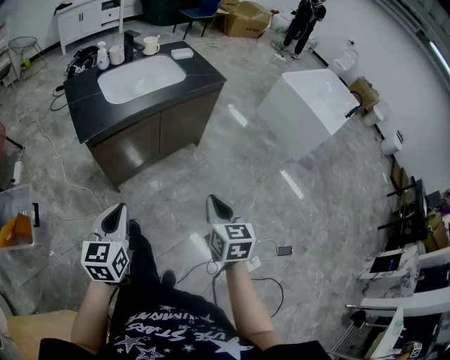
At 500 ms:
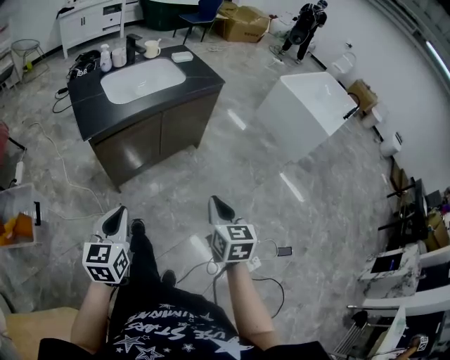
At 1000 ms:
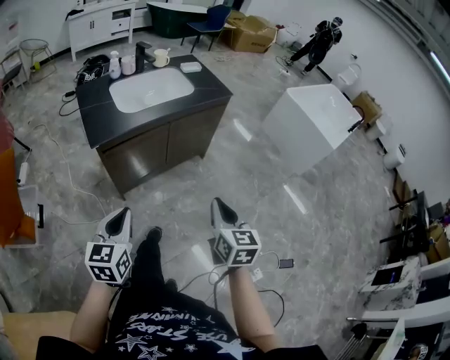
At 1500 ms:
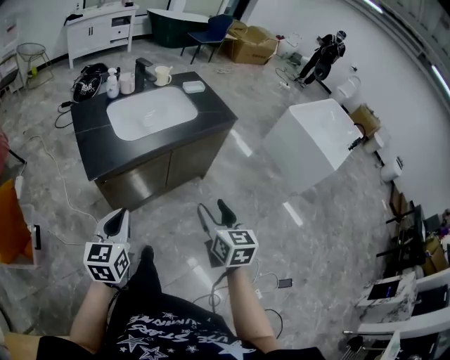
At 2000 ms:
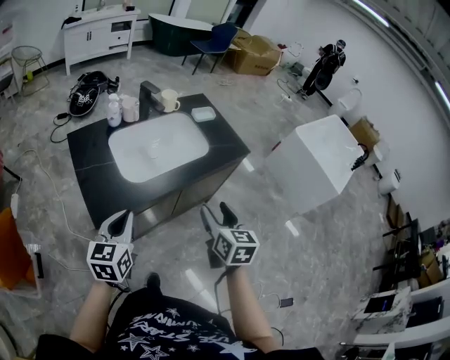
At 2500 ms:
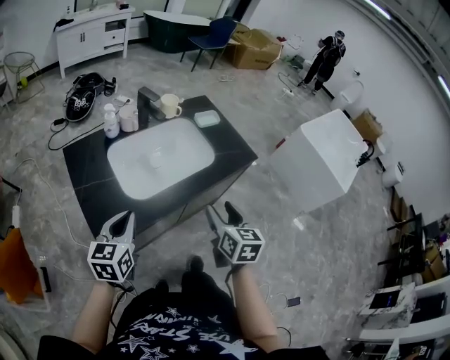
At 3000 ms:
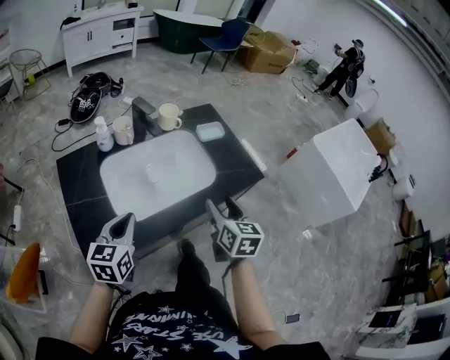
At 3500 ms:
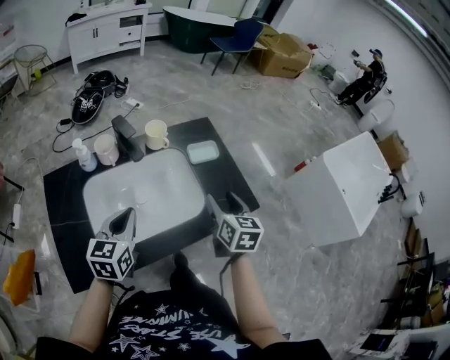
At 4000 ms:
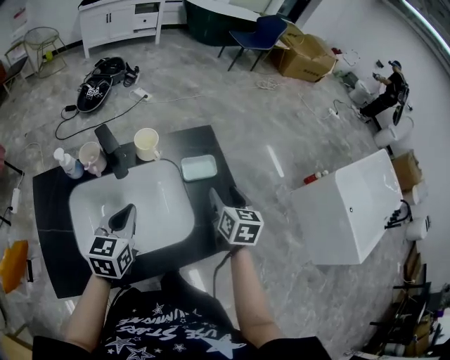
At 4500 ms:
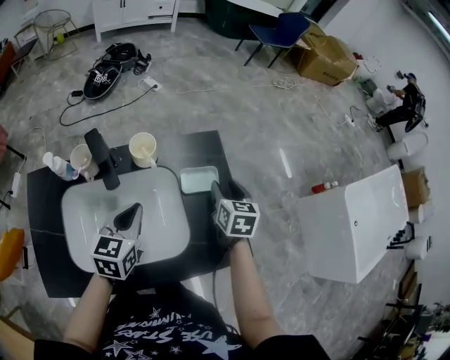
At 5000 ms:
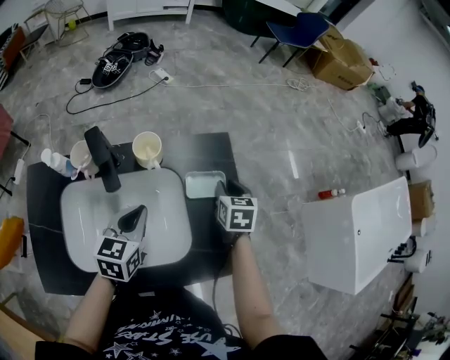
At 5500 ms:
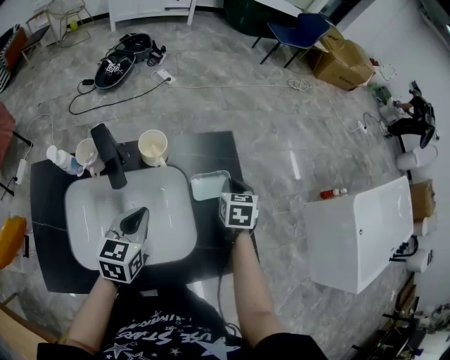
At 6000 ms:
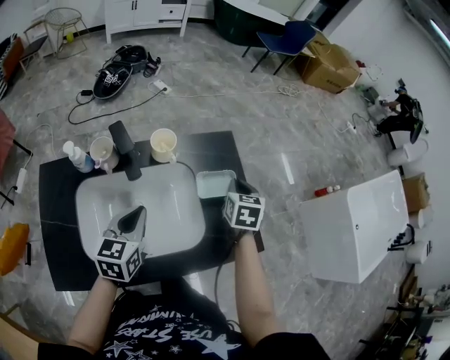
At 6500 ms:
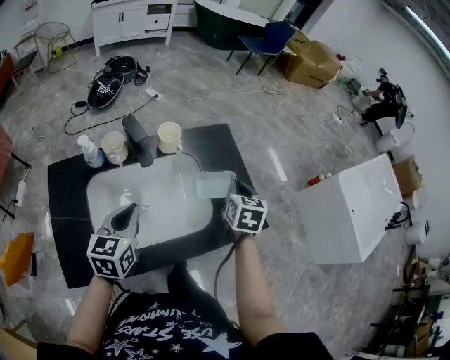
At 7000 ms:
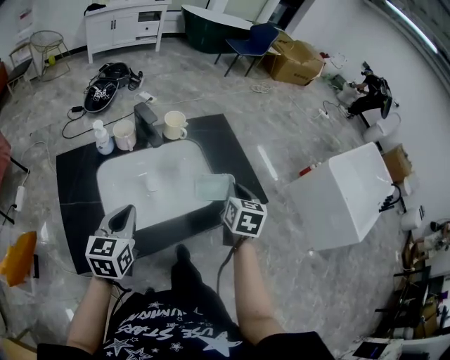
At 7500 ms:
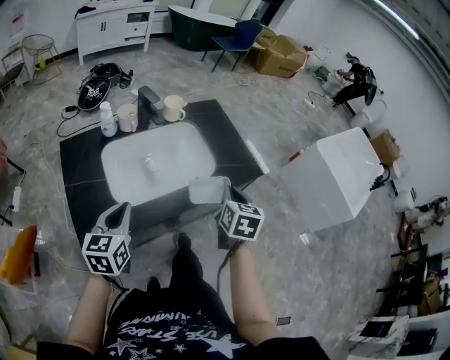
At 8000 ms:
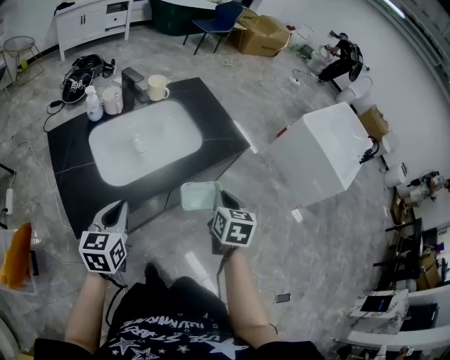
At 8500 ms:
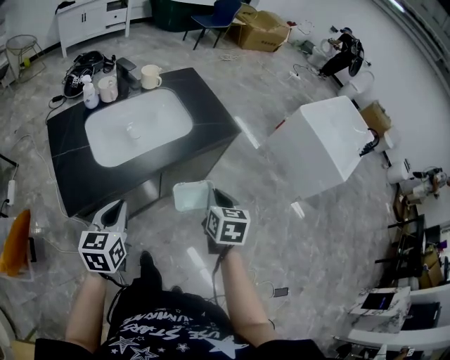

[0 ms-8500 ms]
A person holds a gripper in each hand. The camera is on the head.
0 ms to 2000 ms: Both grippers travel together forward, roughly 30 cm. The right gripper opens.
2000 ms to 4000 ms: The two grippers go approximately 40 cm forward.
4000 ms to 6500 ms: The right gripper reaches approximately 10 cm forward, then returns, and closes up, while the left gripper goes some 5 cm to the left.
6500 ms to 8500 ms: The grippers both shift backward by about 35 cm.

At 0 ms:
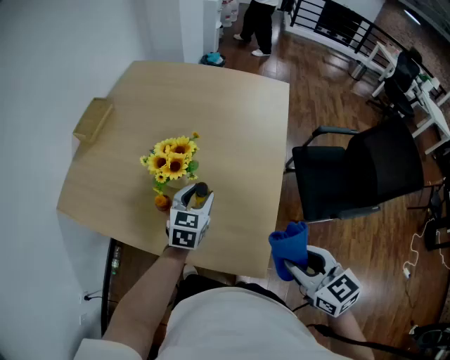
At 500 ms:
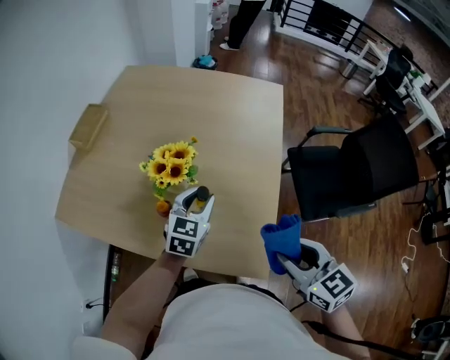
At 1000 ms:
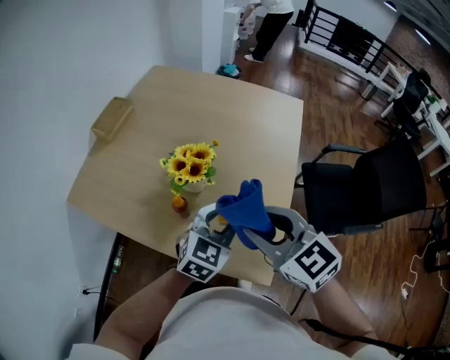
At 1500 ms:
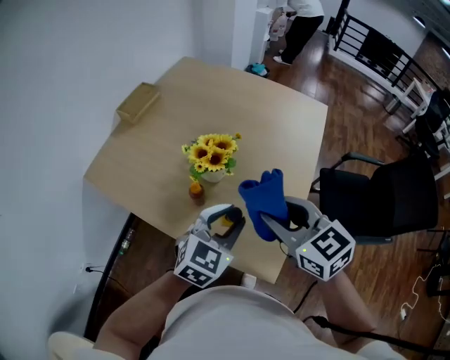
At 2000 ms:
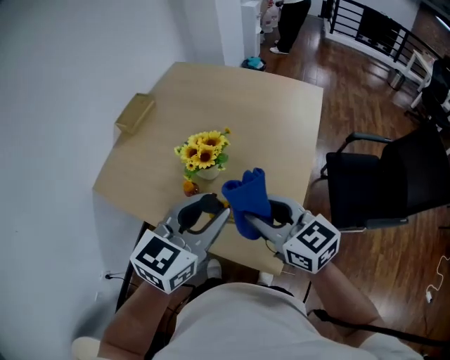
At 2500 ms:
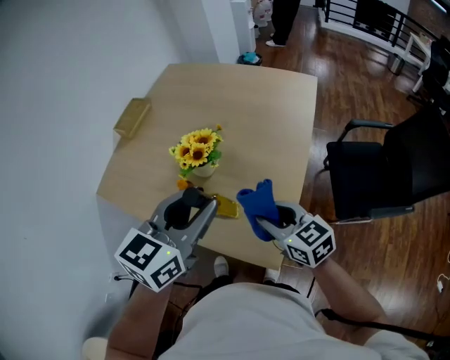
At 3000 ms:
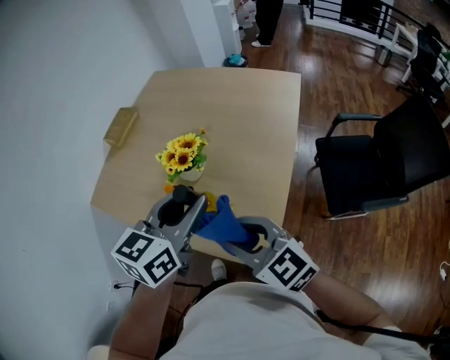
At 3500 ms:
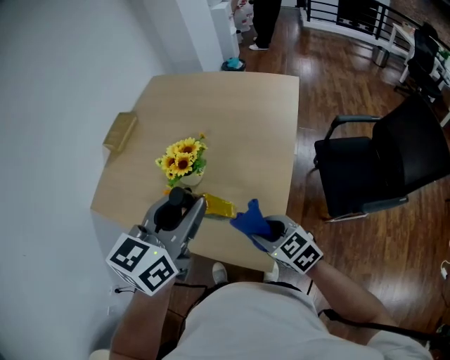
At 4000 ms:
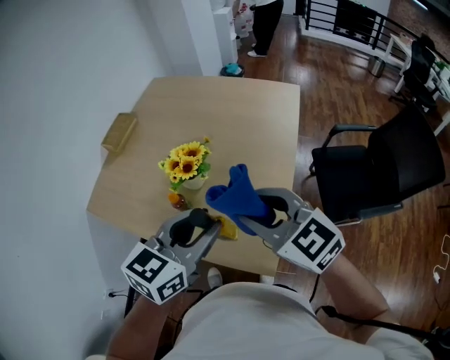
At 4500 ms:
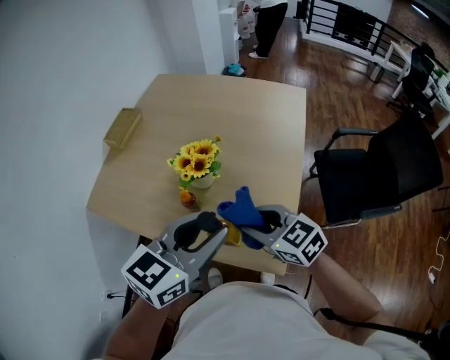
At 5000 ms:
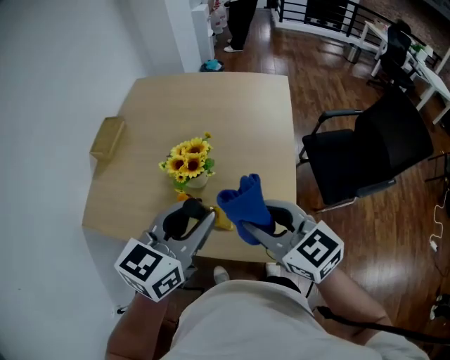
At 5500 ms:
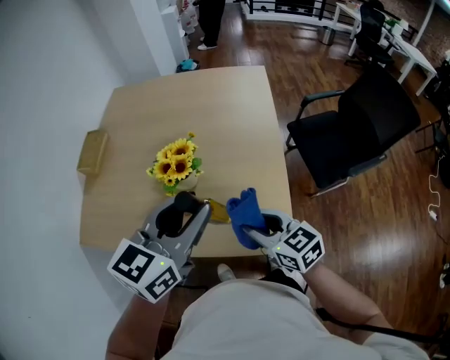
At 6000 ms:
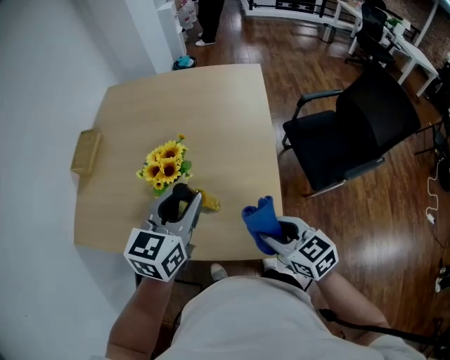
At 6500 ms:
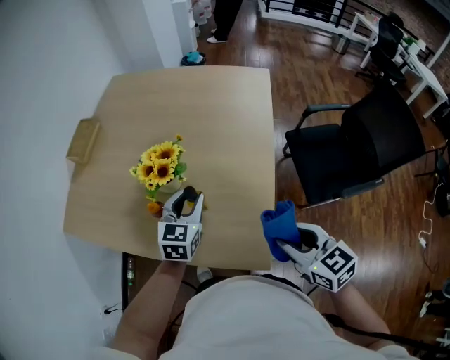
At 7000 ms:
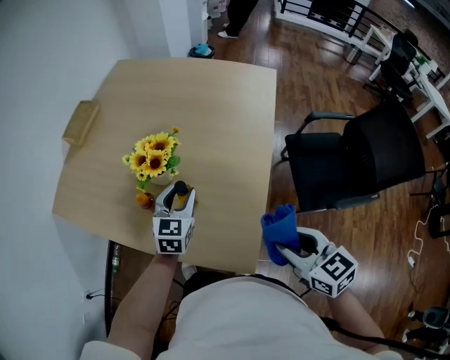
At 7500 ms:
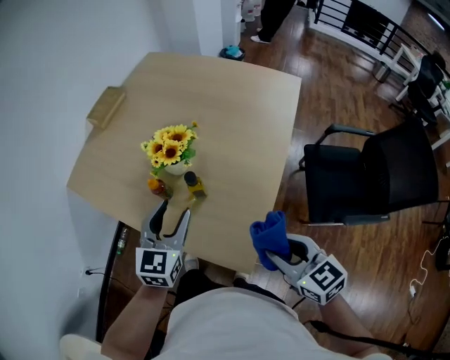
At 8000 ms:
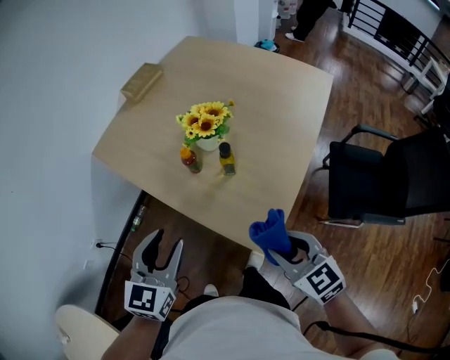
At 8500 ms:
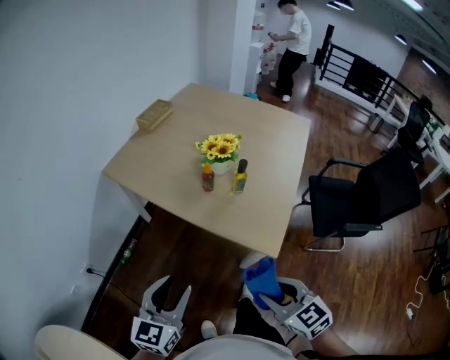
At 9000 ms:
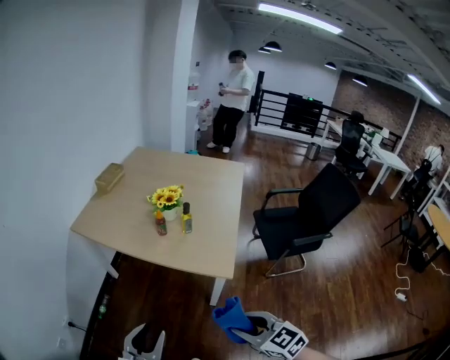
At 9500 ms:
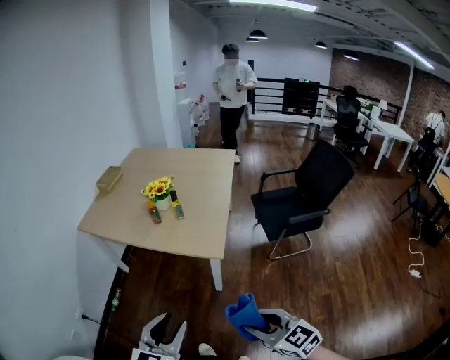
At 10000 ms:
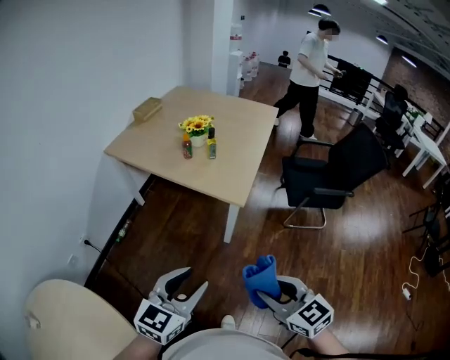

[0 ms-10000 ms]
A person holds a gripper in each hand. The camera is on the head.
0 ms to 2000 ms: The right gripper heads to the left, forward and upward, covering roughly 15 cm, and changes its angle by roughly 30 degrees; the left gripper shifts roughly 25 cm upward and backward.
2000 ms to 4000 ms: The right gripper goes up and down, roughly 20 cm each way, reversing 3 times.
4000 ms to 6000 ms: The left gripper travels forward by about 10 cm, while the right gripper swings up and down, roughly 15 cm each way, with 2 reversals, and changes its angle by approximately 40 degrees.
6000 ms to 8000 ms: The left gripper travels downward and back again, approximately 15 cm each way, and swivels some 30 degrees. The right gripper ends up approximately 10 cm from where it was, and swivels roughly 30 degrees.
8000 ms to 10000 ms: The two grippers travel together, backward, roughly 50 cm. The left gripper rotates roughly 30 degrees.

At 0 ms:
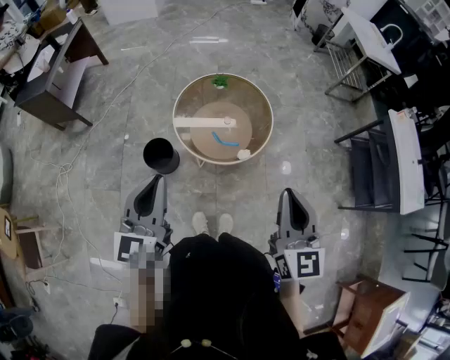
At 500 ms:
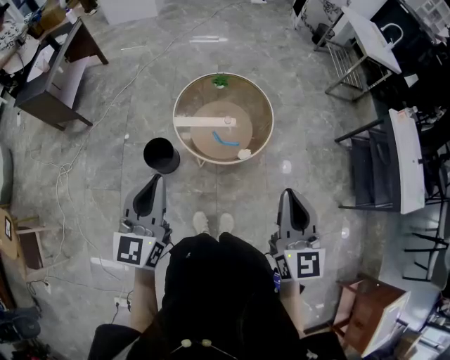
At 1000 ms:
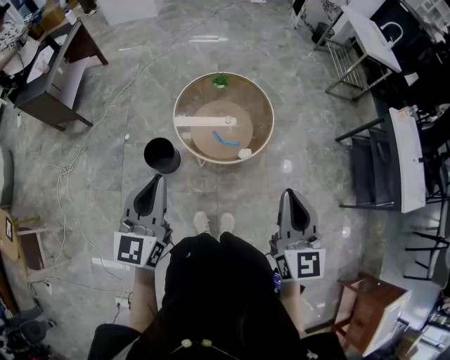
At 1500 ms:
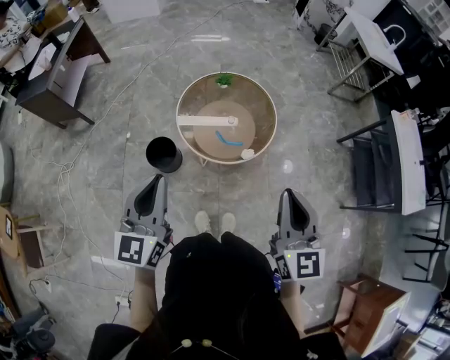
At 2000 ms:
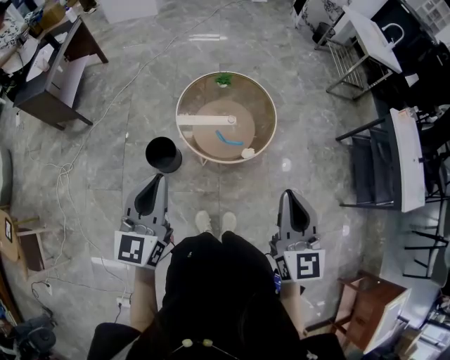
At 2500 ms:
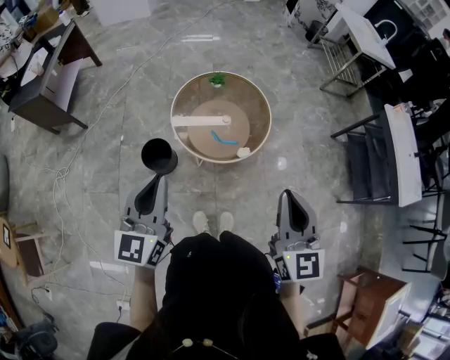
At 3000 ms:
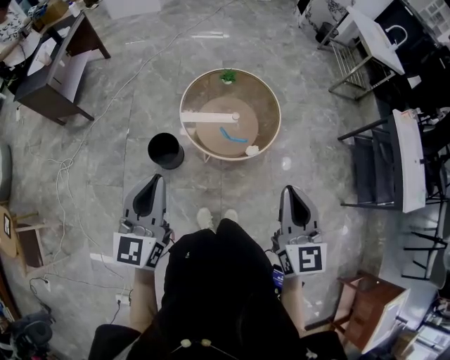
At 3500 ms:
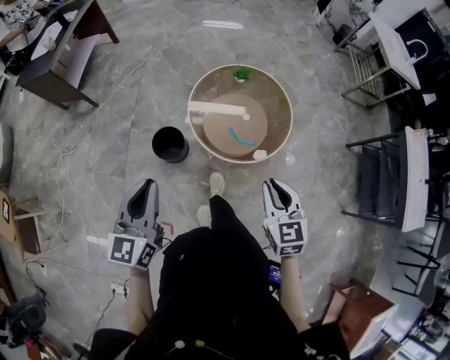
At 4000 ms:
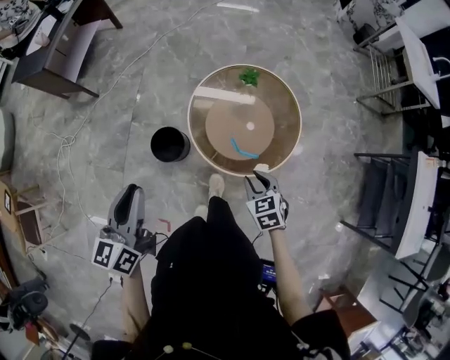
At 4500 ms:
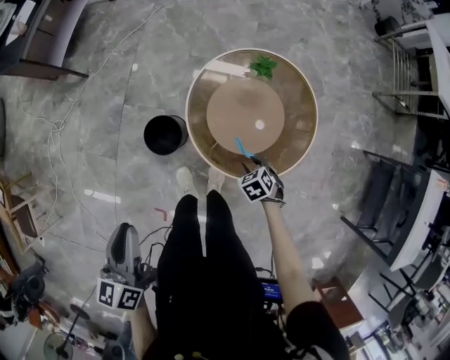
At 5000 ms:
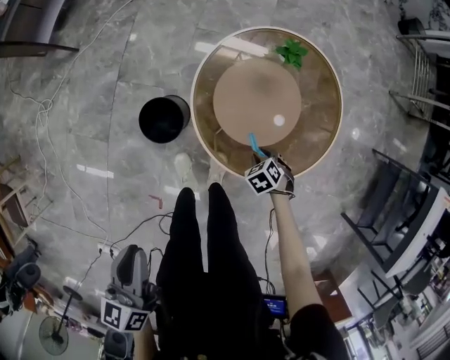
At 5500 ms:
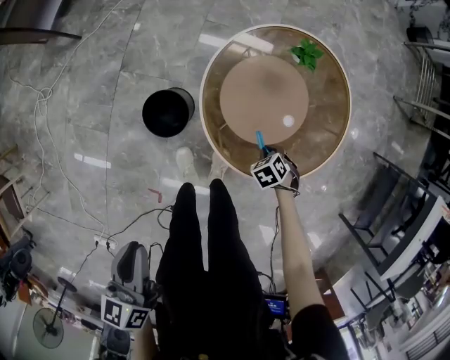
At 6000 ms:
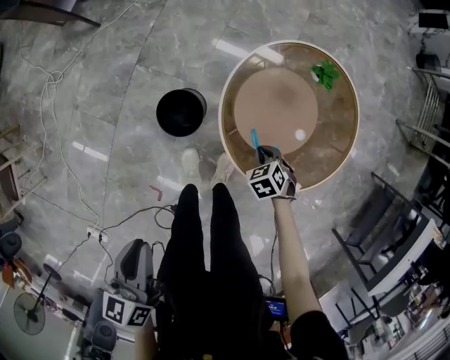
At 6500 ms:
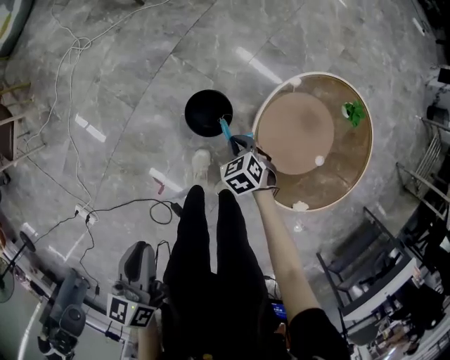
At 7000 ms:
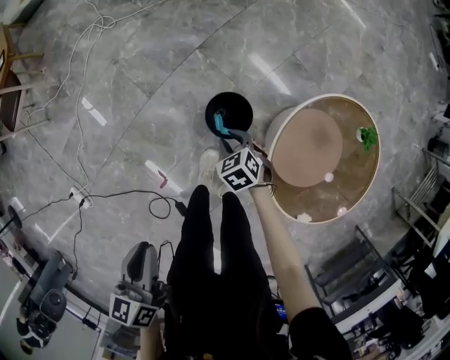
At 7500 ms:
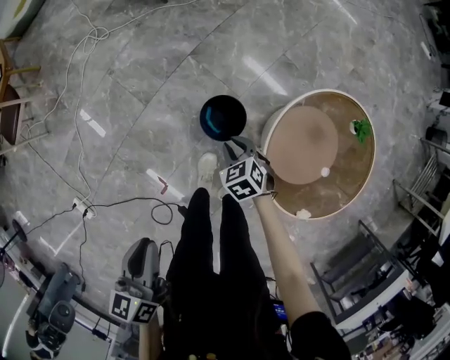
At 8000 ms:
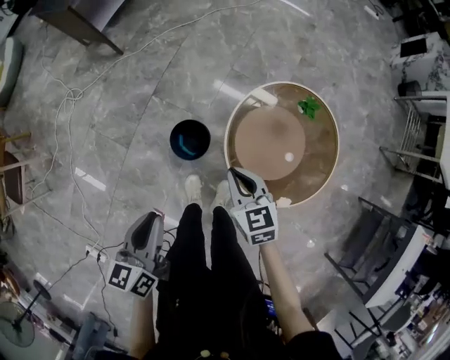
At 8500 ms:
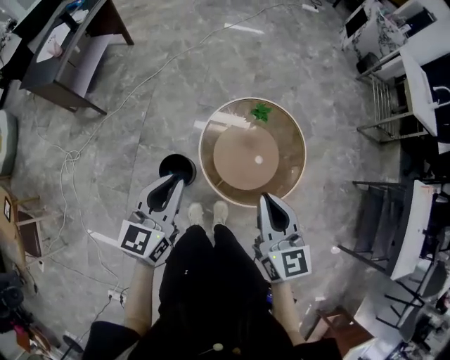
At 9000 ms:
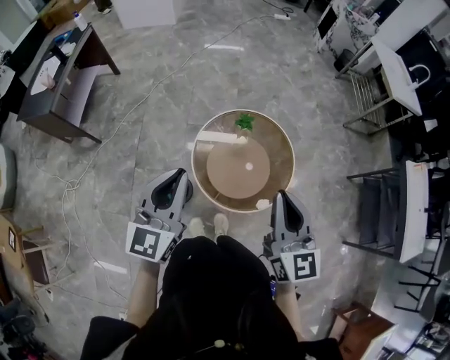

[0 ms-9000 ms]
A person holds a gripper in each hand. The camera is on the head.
0 ms to 2000 ms: The grippers stay close to where they were, moving slightly.
2000 ms to 4500 ms: The right gripper is displaced downward by about 50 cm, tips its fingers downward by roughly 70 degrees, and opens; the left gripper ends up approximately 20 cm from where it was, and changes its angle by some 40 degrees.
4500 ms to 7000 ms: The right gripper goes downward and returns, roughly 10 cm each way, rotates about 40 degrees, and closes, then reopens, while the left gripper changes place by about 20 cm, and turns by roughly 30 degrees.
7000 ms to 9000 ms: The left gripper moves roughly 40 cm, and angles its fingers upward, by some 30 degrees; the right gripper travels upward by some 50 cm, points its fingers roughly 60 degrees further upward, and closes.
